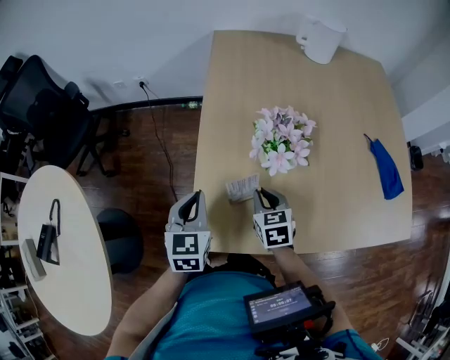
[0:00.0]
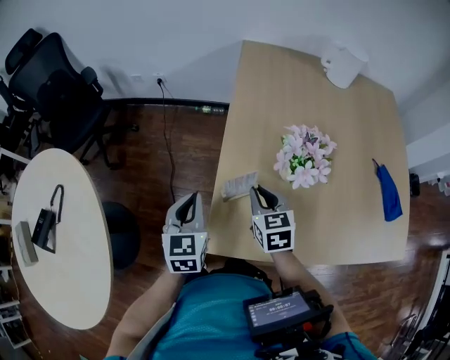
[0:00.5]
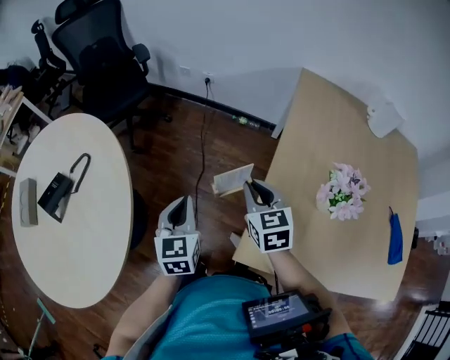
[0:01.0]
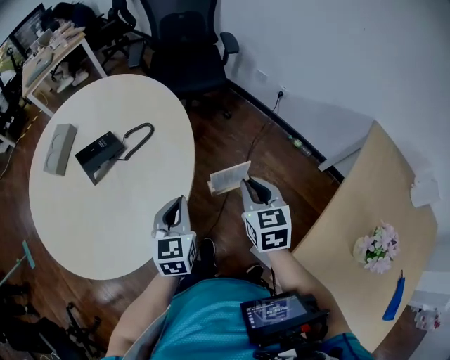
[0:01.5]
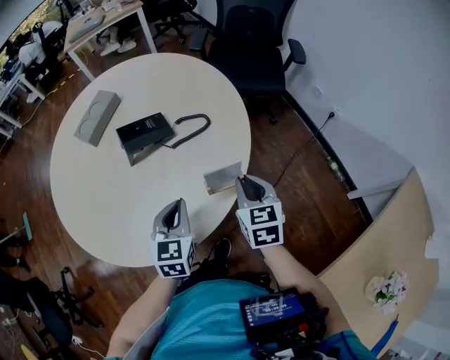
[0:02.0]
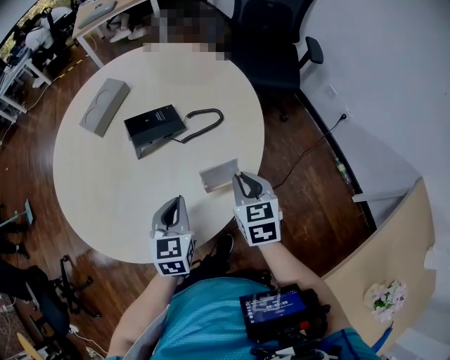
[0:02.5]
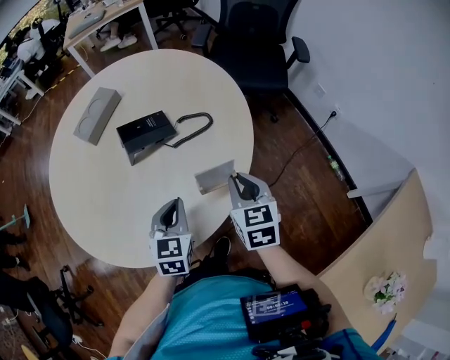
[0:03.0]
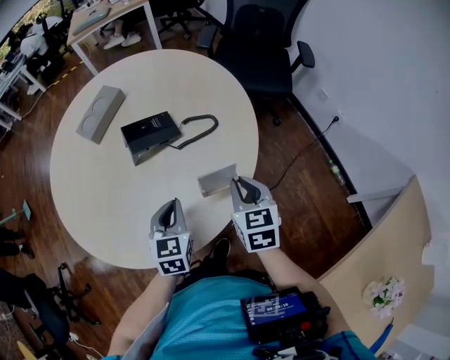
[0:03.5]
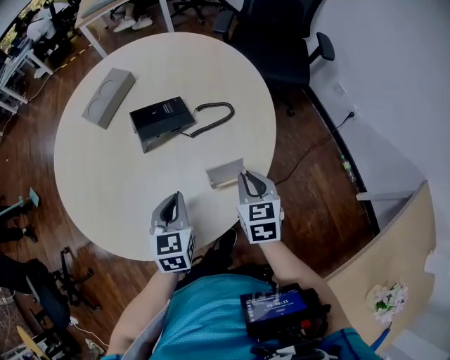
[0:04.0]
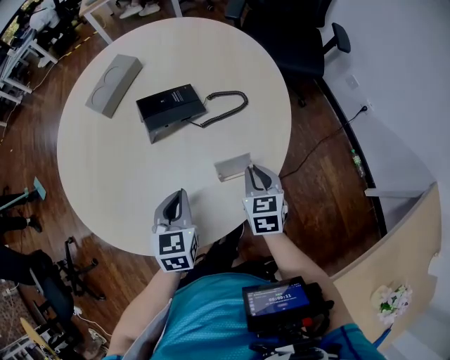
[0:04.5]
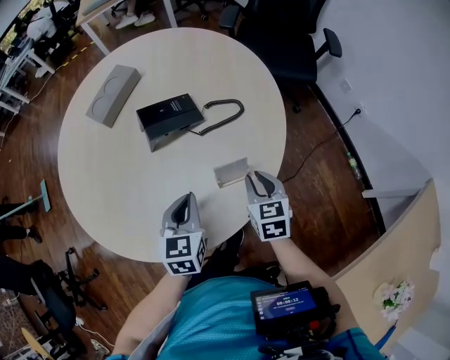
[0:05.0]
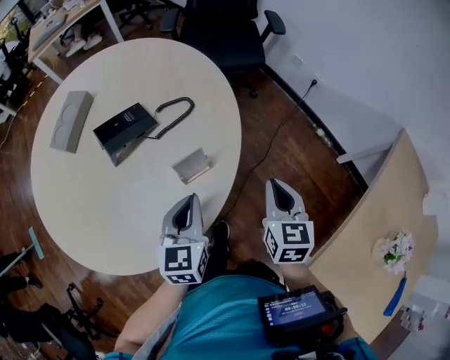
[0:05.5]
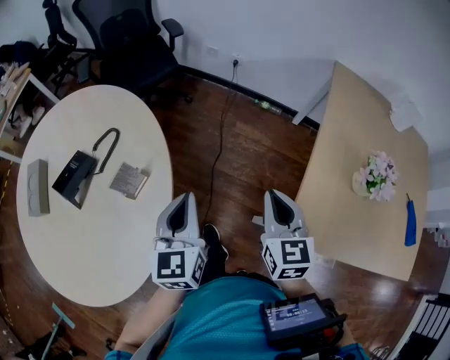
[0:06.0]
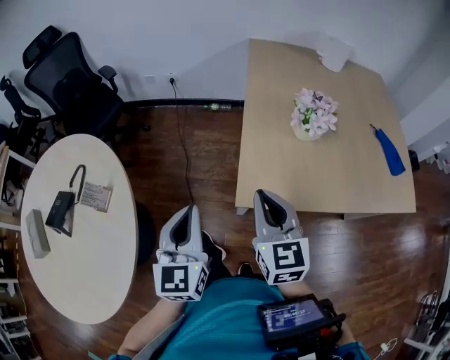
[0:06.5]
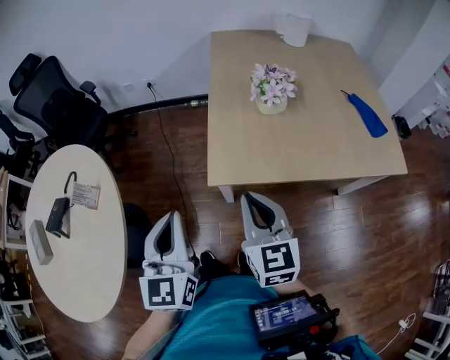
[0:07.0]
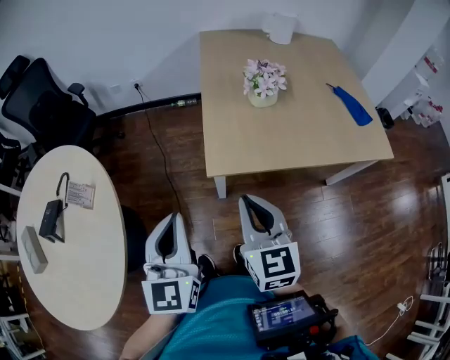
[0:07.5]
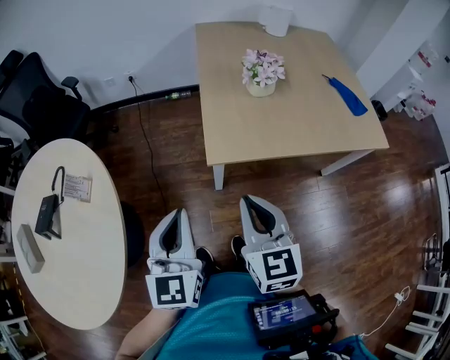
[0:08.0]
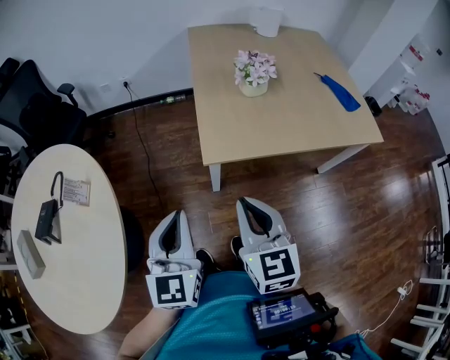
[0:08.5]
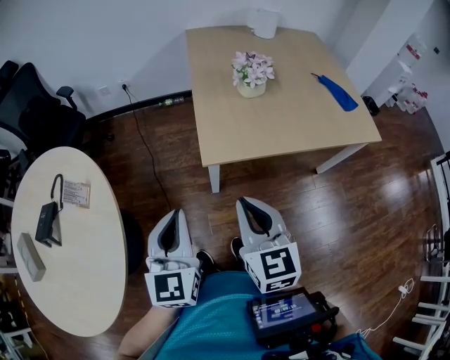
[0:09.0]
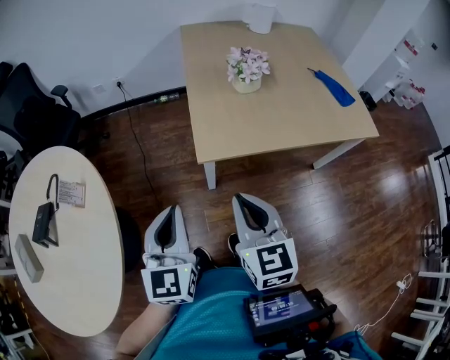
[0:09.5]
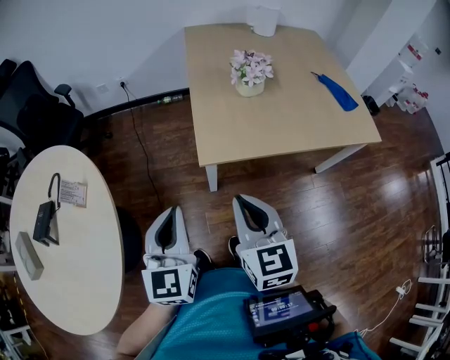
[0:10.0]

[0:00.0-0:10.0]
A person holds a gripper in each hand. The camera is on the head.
0:00.0 to 0:02.0: The pair of grippers is taken about 60 cm. The right gripper turns by some 60 degrees, while the left gripper changes its angle by approximately 60 degrees.
0:02.0 to 0:04.0: Both grippers move to the left, about 5 cm.
0:04.0 to 0:06.0: The right gripper changes place by about 35 cm, and changes its angle by about 50 degrees. The left gripper ends up about 30 cm from where it was, and rotates approximately 50 degrees.
0:06.0 to 0:08.0: The right gripper ends up roughly 35 cm from where it was, and turns by about 20 degrees. Meanwhile the left gripper shifts by some 30 cm, and rotates some 30 degrees.
0:08.0 to 0:10.0: The grippers make only small movements.

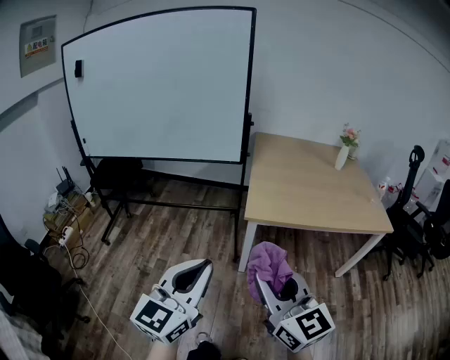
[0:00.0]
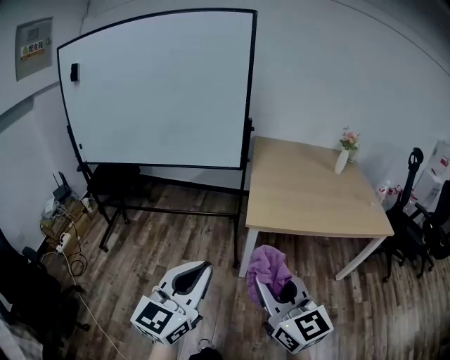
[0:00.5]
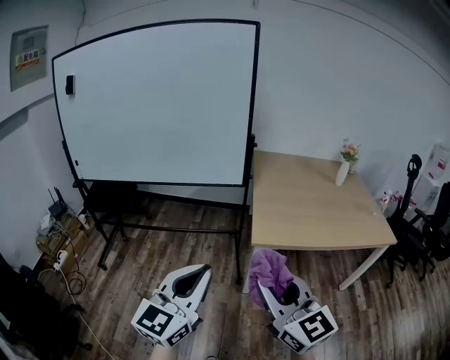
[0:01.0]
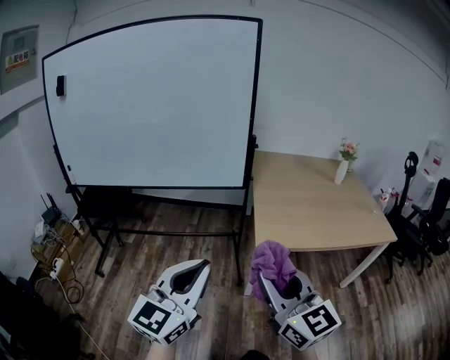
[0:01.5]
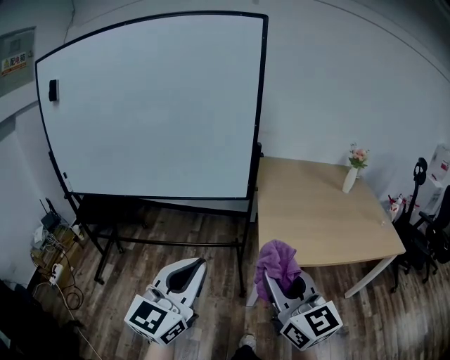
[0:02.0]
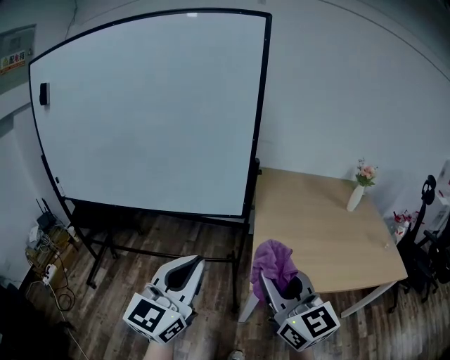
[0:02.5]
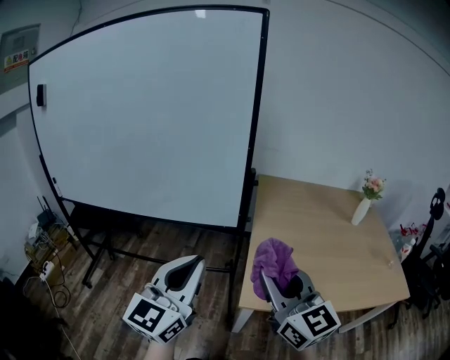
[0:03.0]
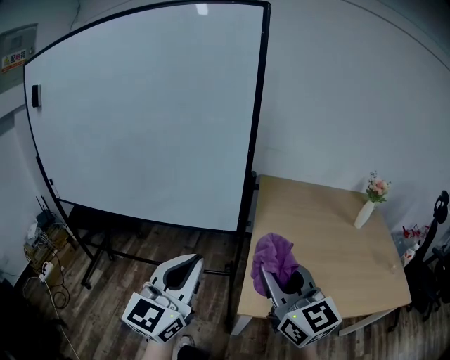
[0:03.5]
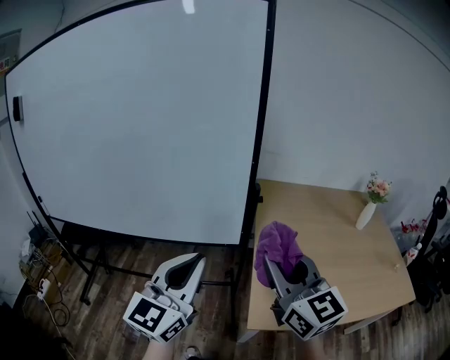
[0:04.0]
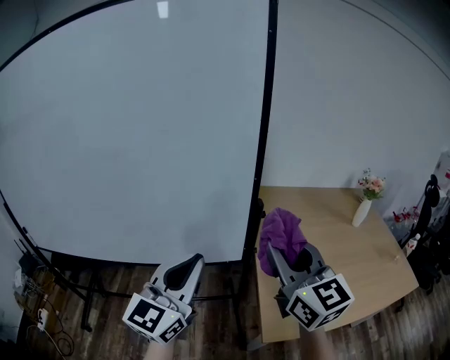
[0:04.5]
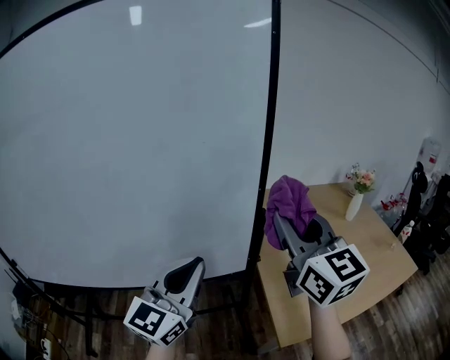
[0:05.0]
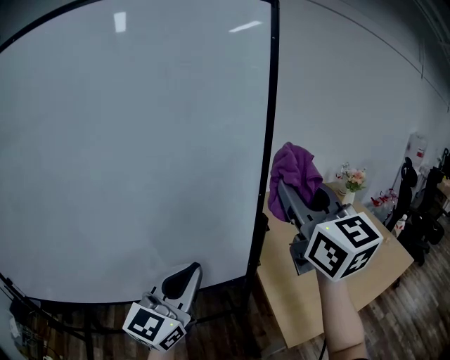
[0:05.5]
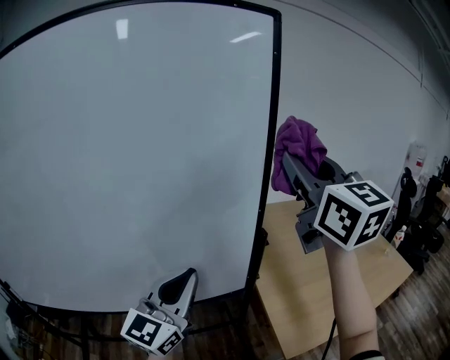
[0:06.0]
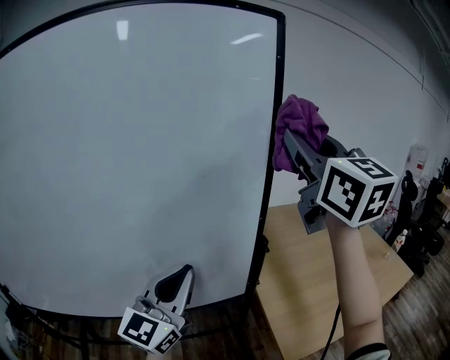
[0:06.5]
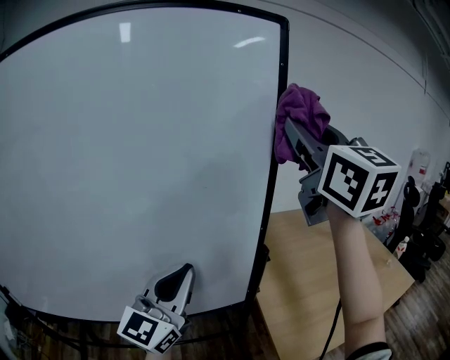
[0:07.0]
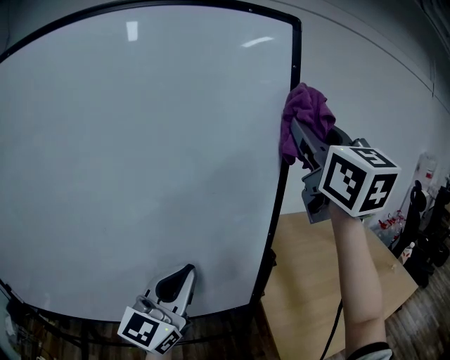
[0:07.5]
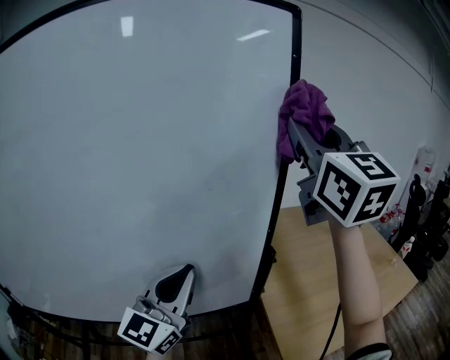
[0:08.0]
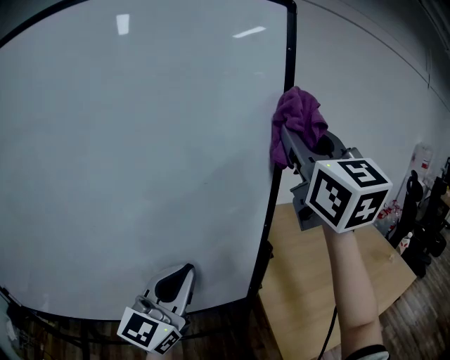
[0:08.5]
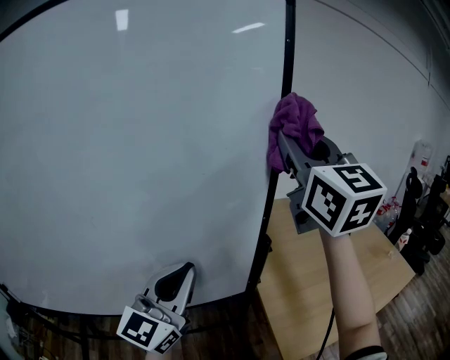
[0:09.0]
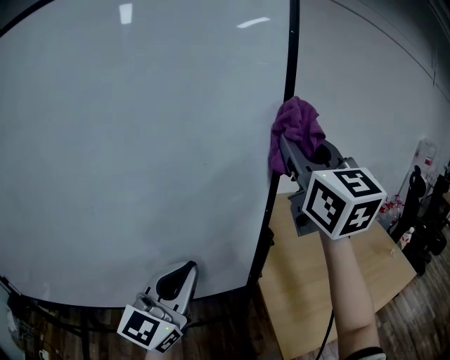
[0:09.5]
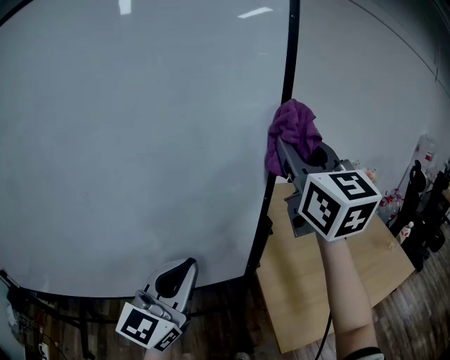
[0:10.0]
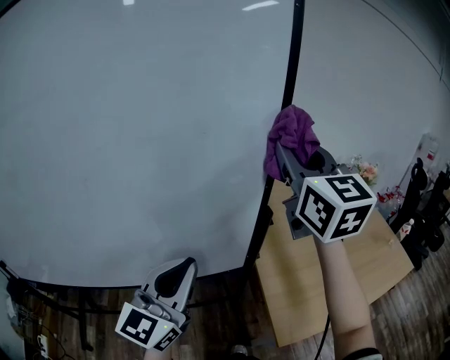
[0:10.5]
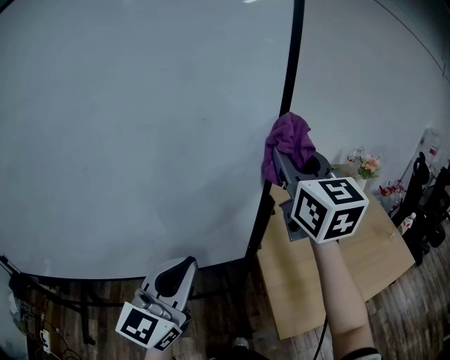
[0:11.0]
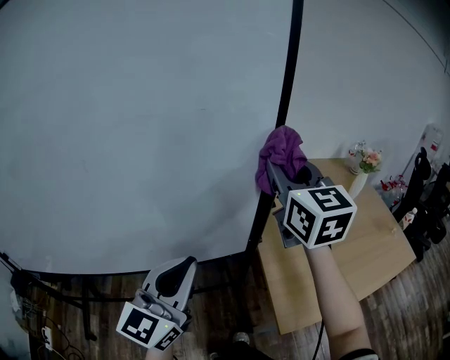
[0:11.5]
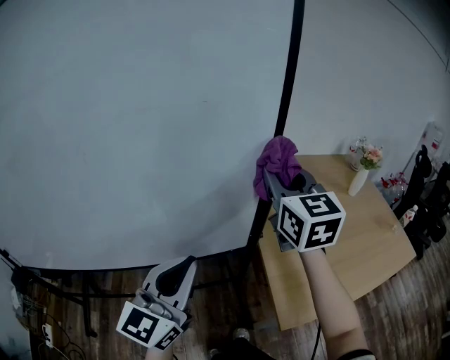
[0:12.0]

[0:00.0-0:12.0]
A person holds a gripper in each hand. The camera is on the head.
0:00.0 to 0:02.0: The right gripper travels forward by approximately 20 cm; the left gripper shifts approximately 25 cm forward and to the left.
0:02.0 to 0:04.0: The grippers both shift forward by some 30 cm.
0:04.0 to 0:06.0: The left gripper travels forward and to the left by about 20 cm, while the right gripper shifts some 30 cm upward and forward, and rotates about 20 degrees.
0:06.0 to 0:08.0: The left gripper travels forward by some 5 cm, while the right gripper shifts approximately 10 cm upward and forward.
0:08.0 to 0:10.0: The right gripper moves downward, about 10 cm; the left gripper ends up some 5 cm from where it was.
0:10.0 to 0:12.0: The left gripper shifts by approximately 5 cm; the right gripper shifts about 15 cm downward.

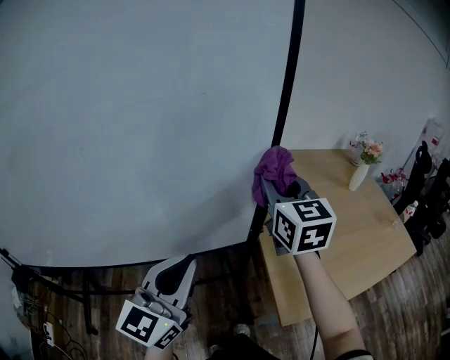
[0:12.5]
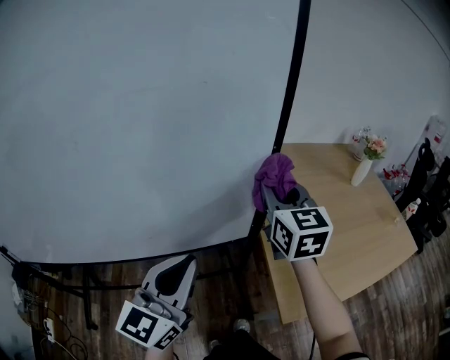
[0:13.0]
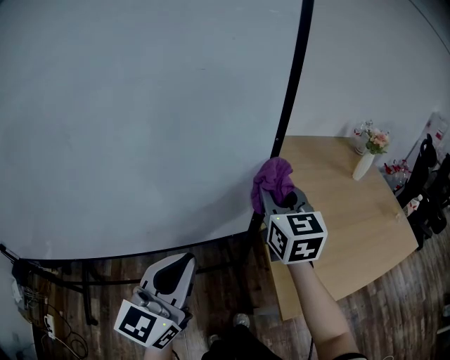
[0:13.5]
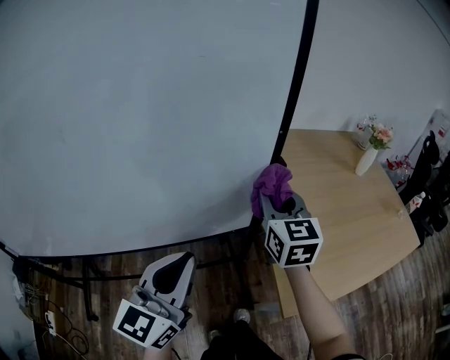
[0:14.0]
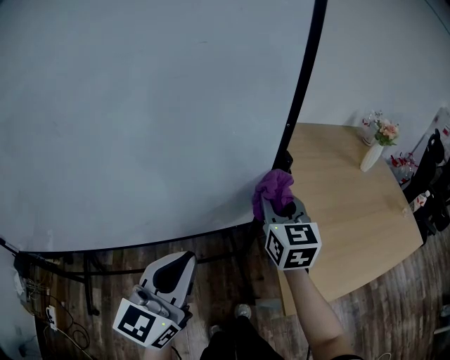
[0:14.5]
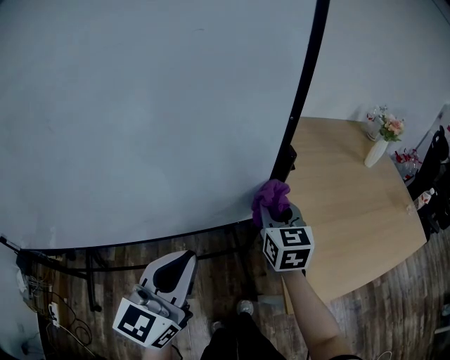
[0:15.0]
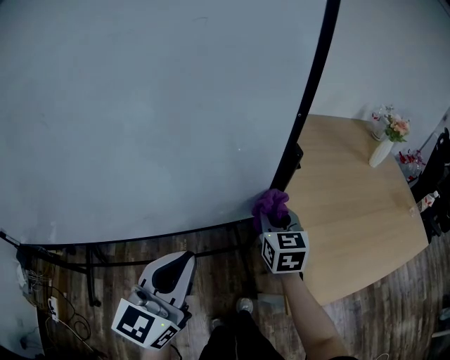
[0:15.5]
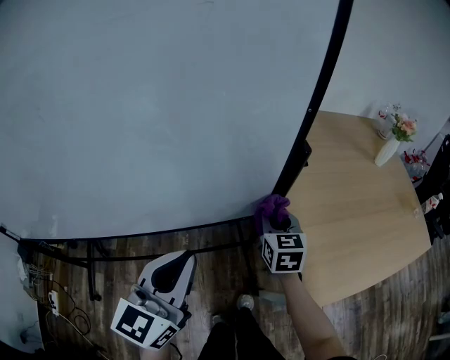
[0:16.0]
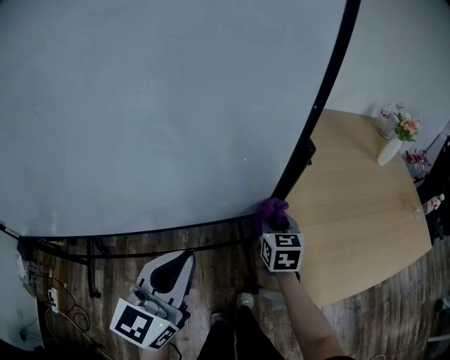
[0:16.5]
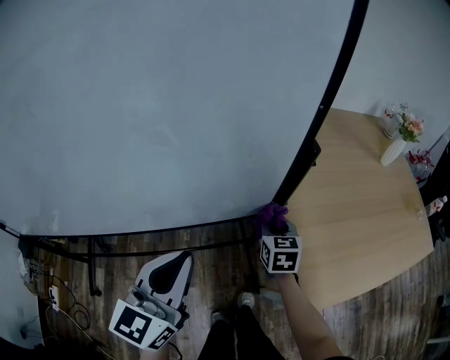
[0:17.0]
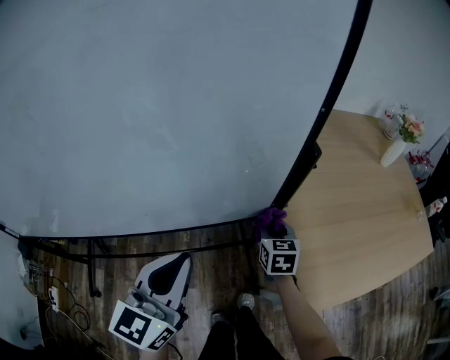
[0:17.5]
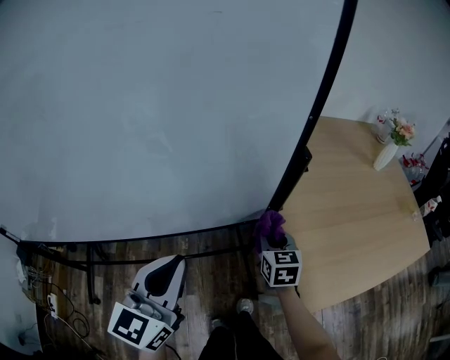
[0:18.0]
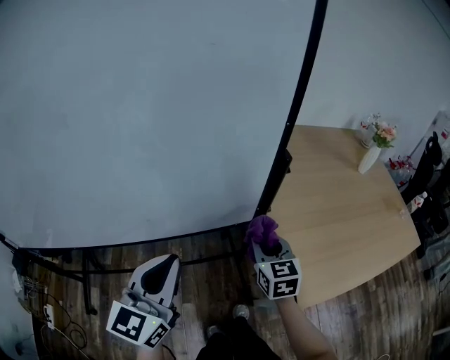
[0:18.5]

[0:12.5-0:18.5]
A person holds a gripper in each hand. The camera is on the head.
0:12.5 to 0:14.5: The left gripper shifts by some 5 cm; the right gripper shifts approximately 15 cm downward.
0:14.5 to 0:16.5: The right gripper travels downward by about 15 cm.
0:16.5 to 0:18.5: The right gripper shifts roughly 10 cm backward and upward.
